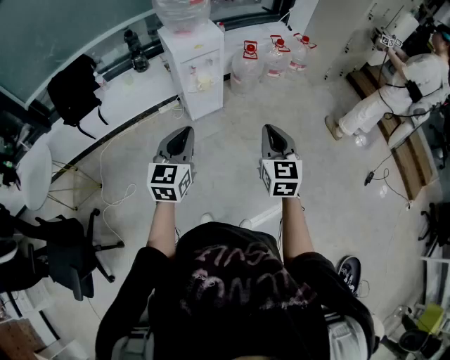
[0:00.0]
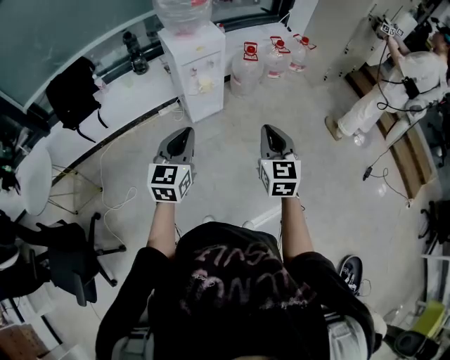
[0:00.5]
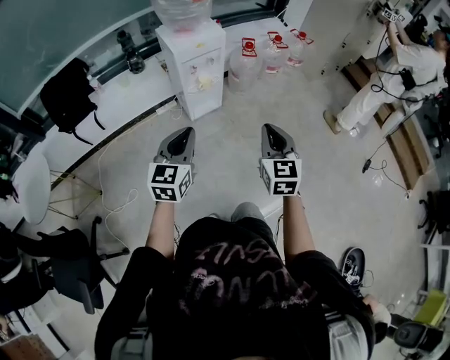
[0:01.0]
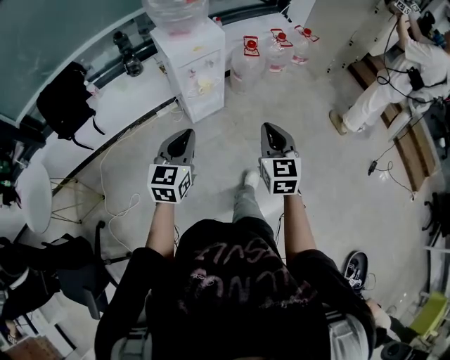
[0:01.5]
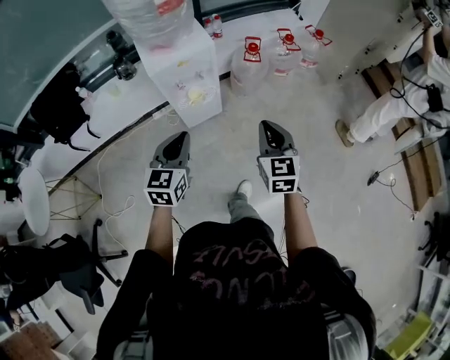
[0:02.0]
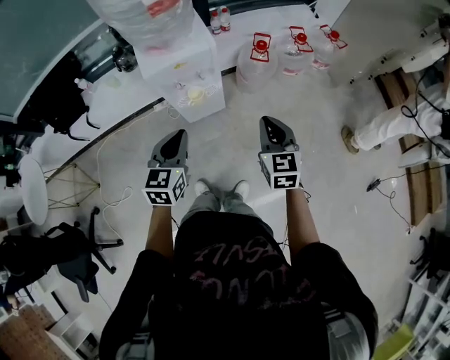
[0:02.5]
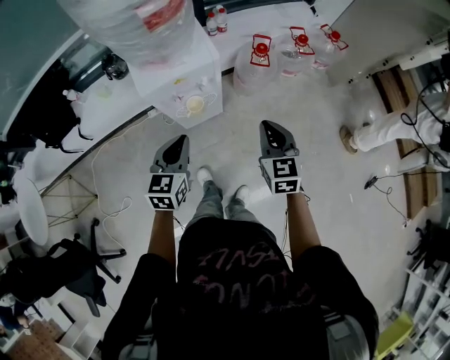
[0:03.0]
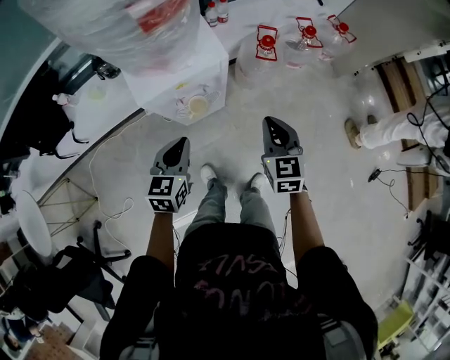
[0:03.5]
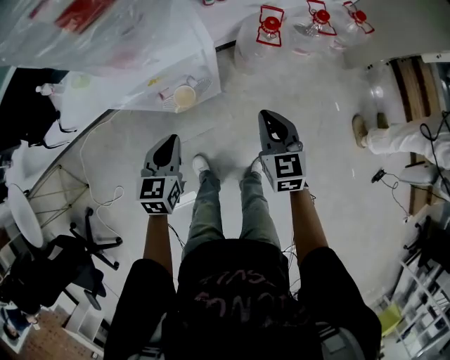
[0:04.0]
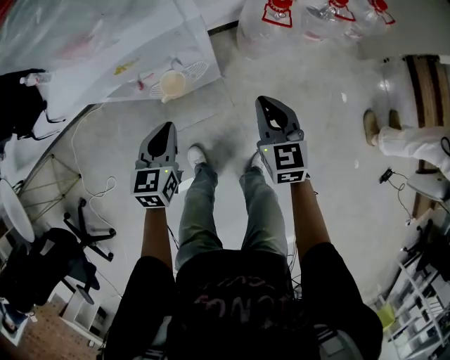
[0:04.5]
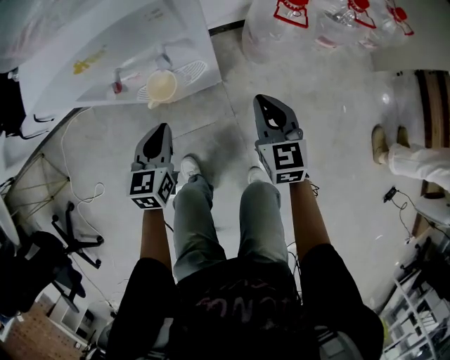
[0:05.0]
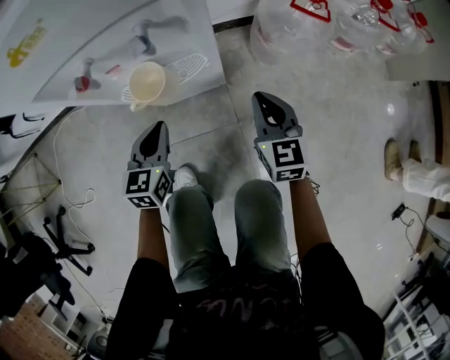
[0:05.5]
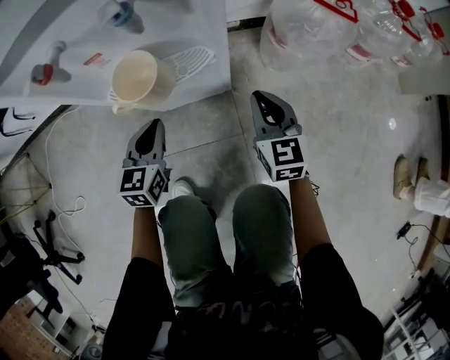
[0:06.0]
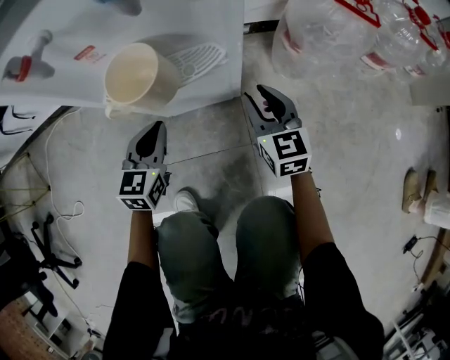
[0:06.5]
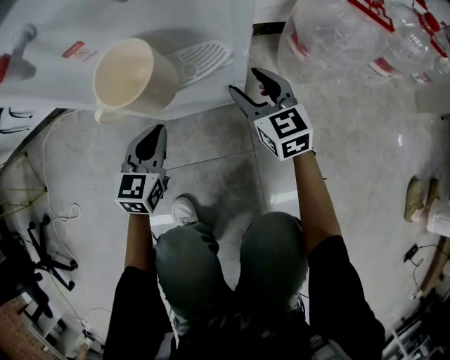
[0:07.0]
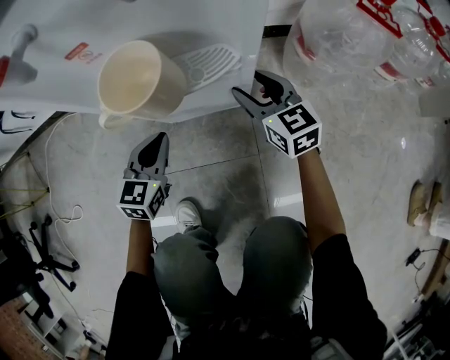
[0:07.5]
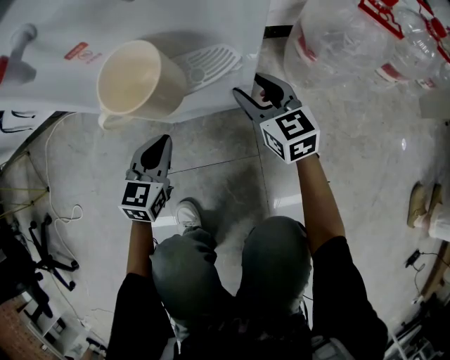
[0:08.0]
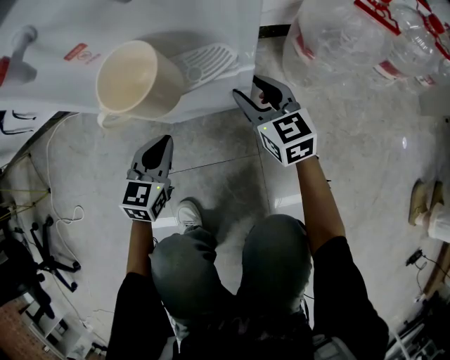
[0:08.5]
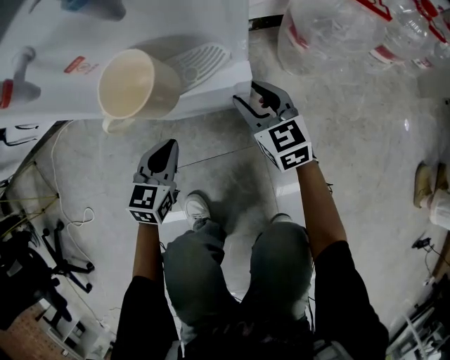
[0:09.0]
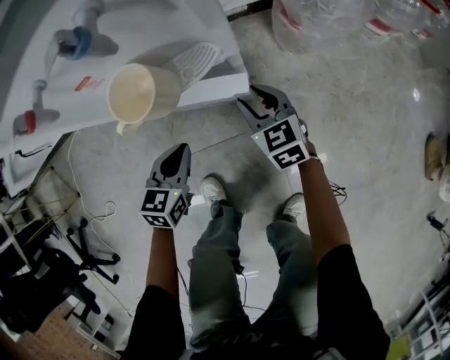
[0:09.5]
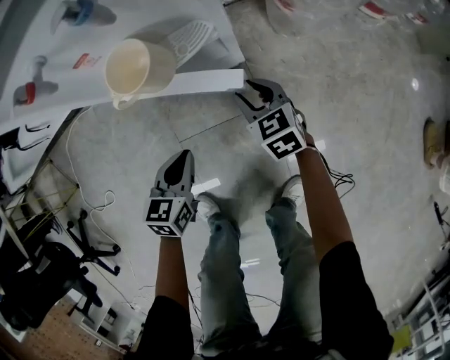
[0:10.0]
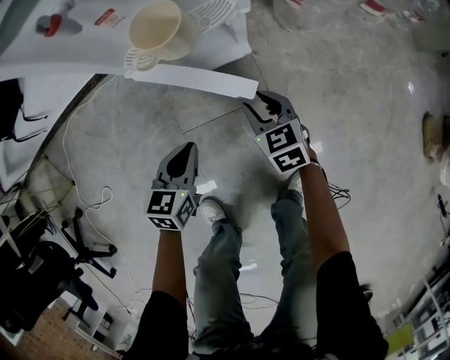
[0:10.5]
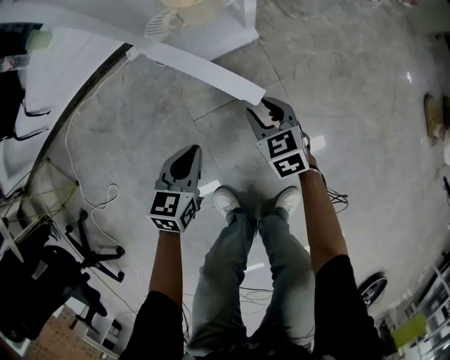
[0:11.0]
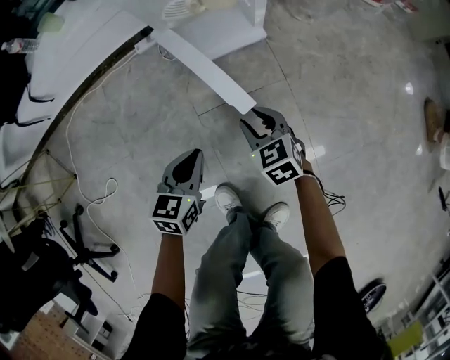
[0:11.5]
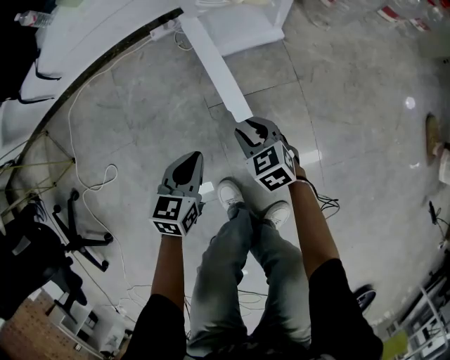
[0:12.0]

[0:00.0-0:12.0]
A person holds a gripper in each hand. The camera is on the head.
0:00.0 to 0:02.0: Both grippers travel together forward, approximately 30 cm.
0:02.0 to 0:04.0: Both grippers move forward and downward, approximately 30 cm.
0:04.0 to 0:06.0: The grippers both shift downward by roughly 40 cm.
0:06.0 to 0:08.0: The left gripper is displaced downward by some 10 cm, while the right gripper moves forward, downward and to the left, roughly 15 cm, and opens up.
0:08.0 to 0:10.0: The right gripper heads backward, covering about 10 cm. Meanwhile the left gripper heads backward and upward, covering approximately 15 cm.
0:10.0 to 0:12.0: The two grippers go about 25 cm backward and to the left.

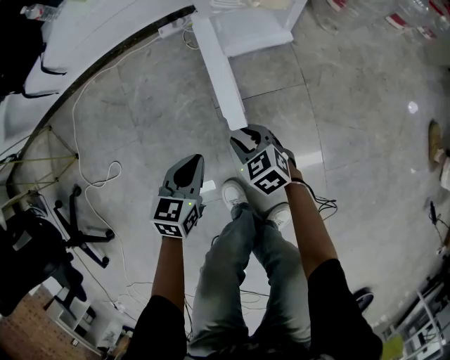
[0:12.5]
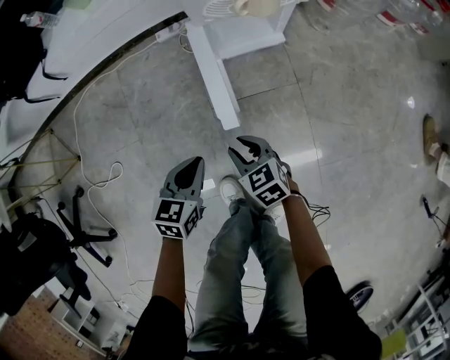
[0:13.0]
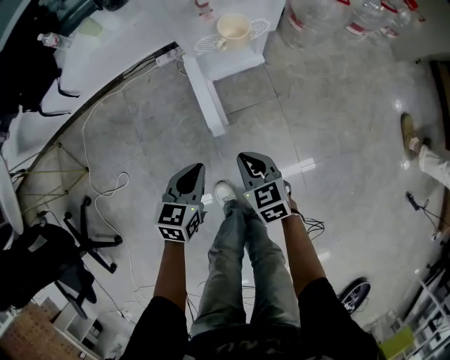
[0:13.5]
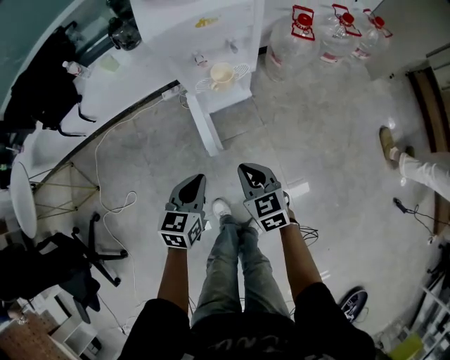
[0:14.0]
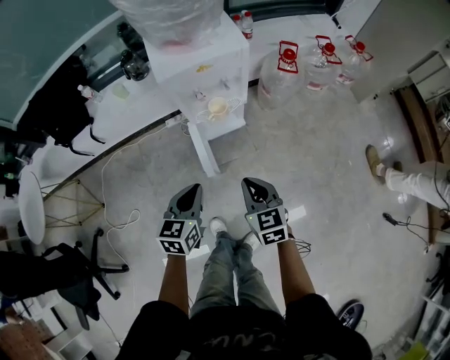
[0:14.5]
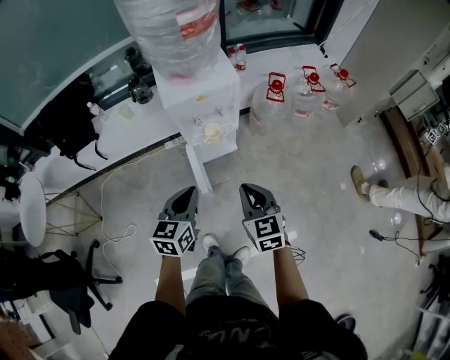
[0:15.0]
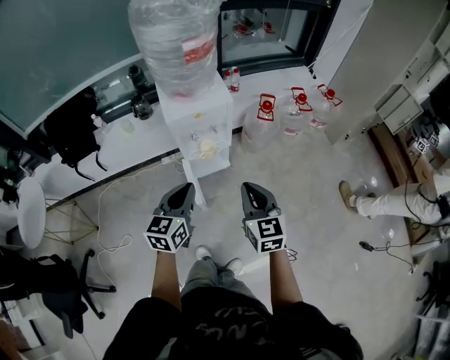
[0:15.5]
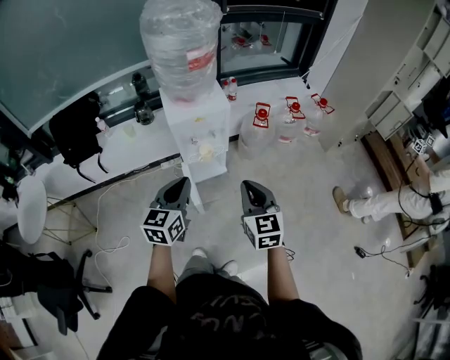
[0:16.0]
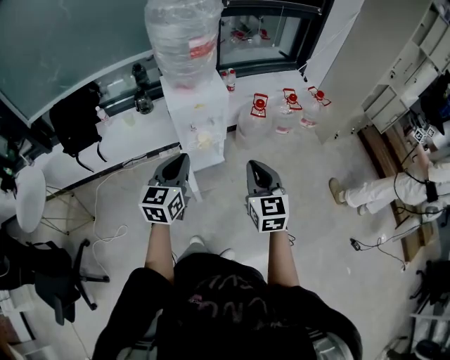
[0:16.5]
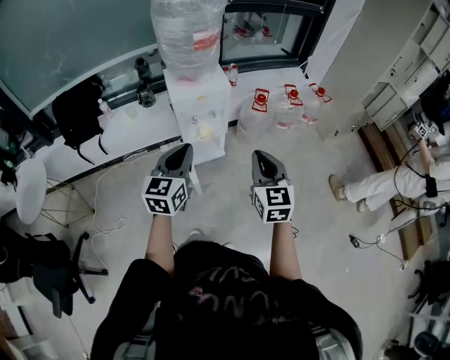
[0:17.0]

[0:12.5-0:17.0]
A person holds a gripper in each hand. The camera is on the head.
0:12.5 to 0:14.5: Both grippers move upward, roughly 50 cm. The right gripper turns by some 30 degrees, and closes.
0:14.5 to 0:17.0: Both grippers move upward, approximately 30 cm. The right gripper rotates some 30 degrees, while the left gripper rotates about 20 degrees.

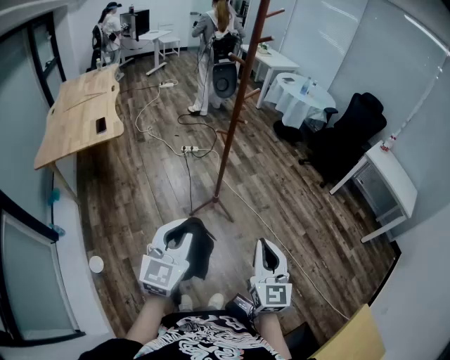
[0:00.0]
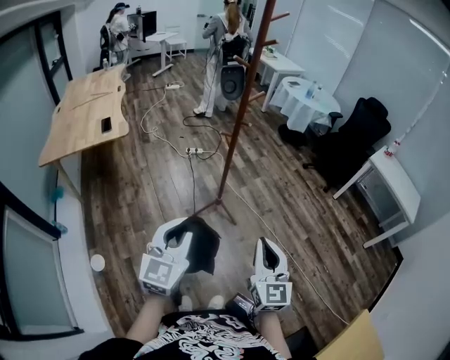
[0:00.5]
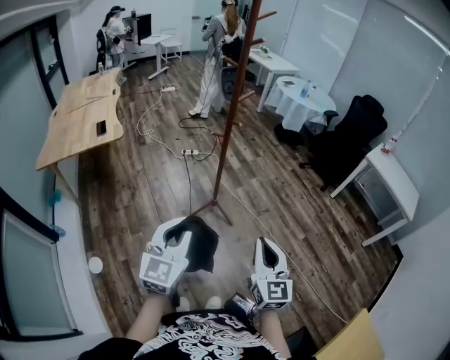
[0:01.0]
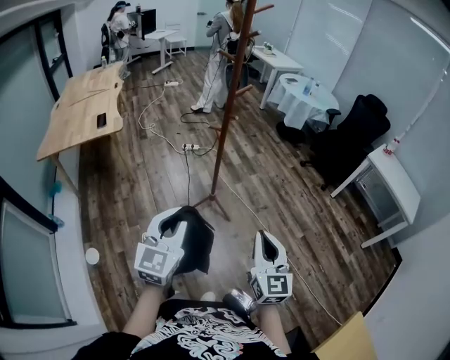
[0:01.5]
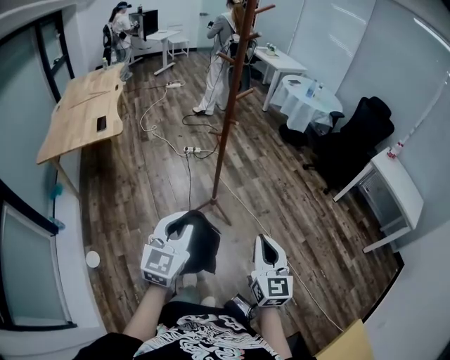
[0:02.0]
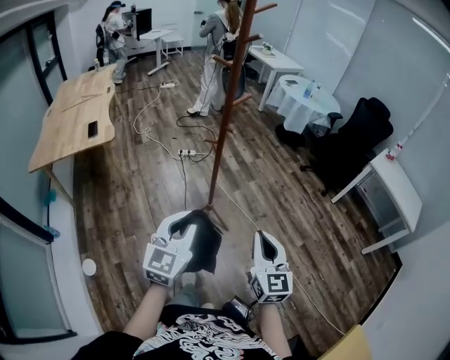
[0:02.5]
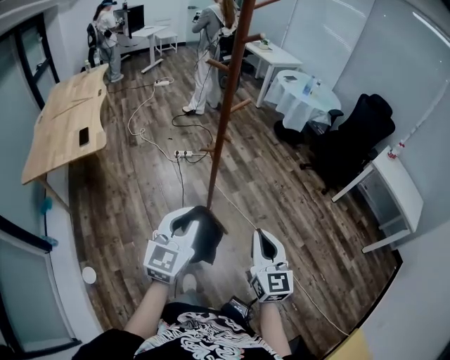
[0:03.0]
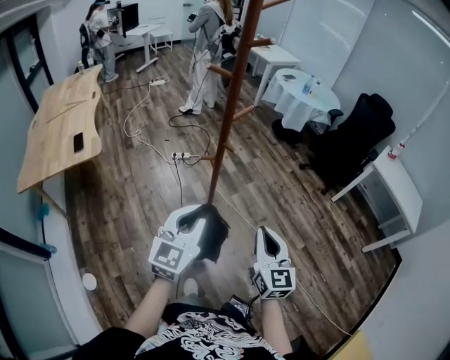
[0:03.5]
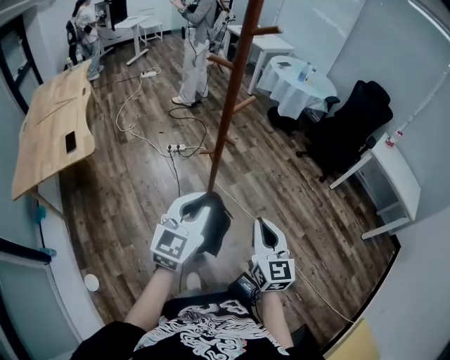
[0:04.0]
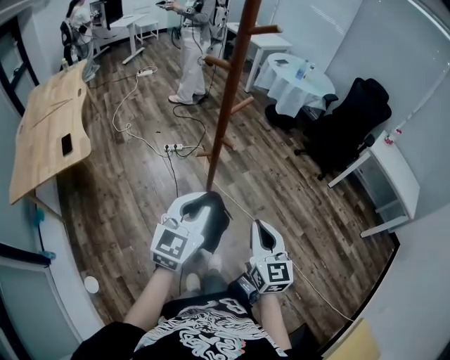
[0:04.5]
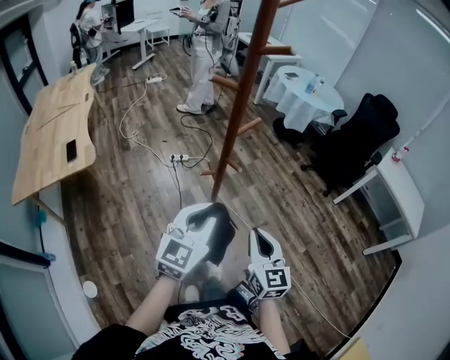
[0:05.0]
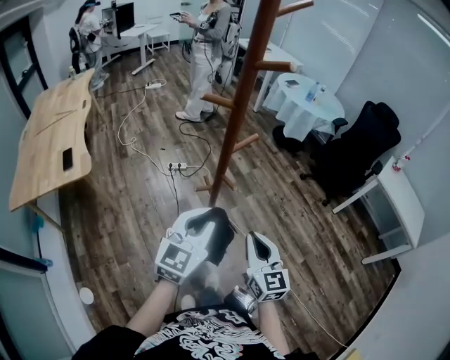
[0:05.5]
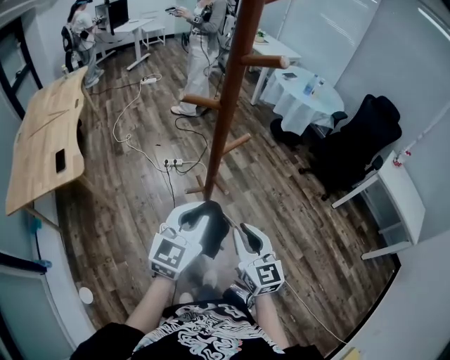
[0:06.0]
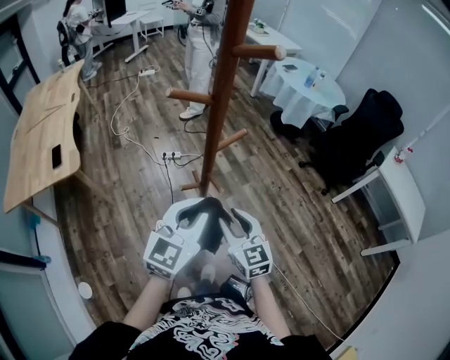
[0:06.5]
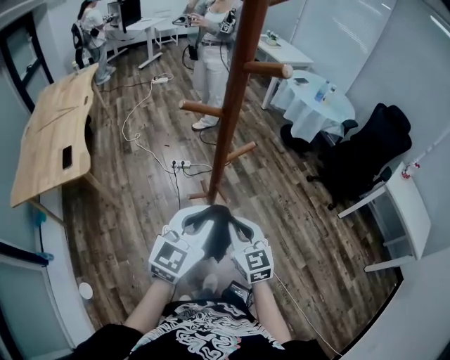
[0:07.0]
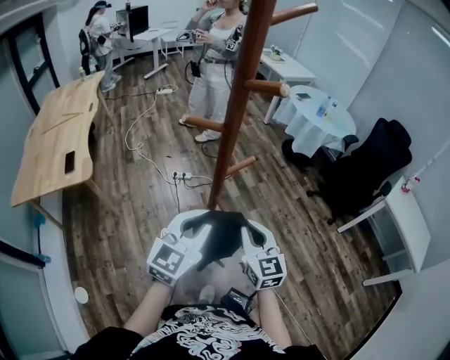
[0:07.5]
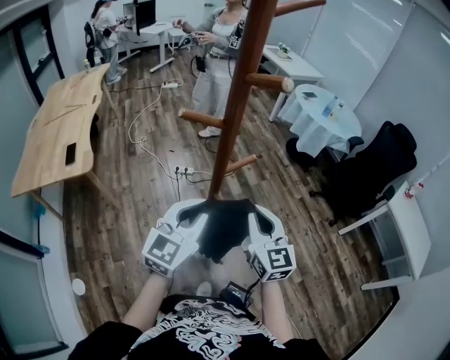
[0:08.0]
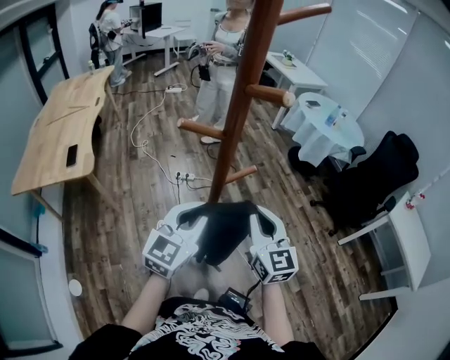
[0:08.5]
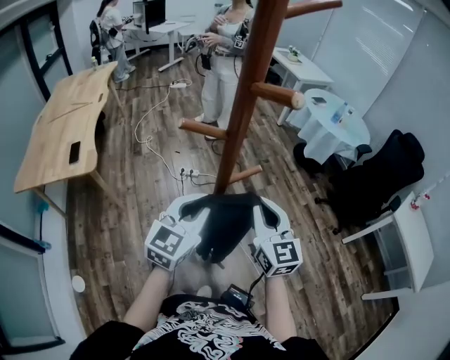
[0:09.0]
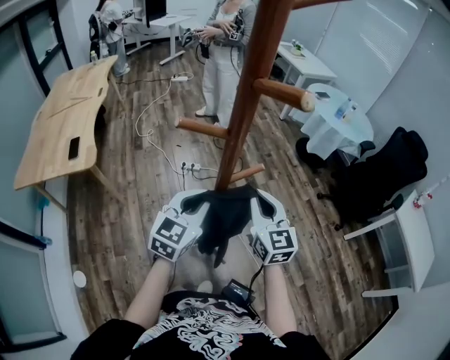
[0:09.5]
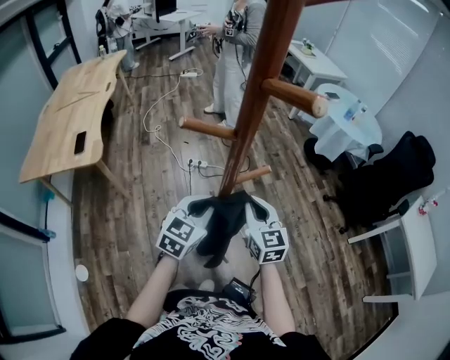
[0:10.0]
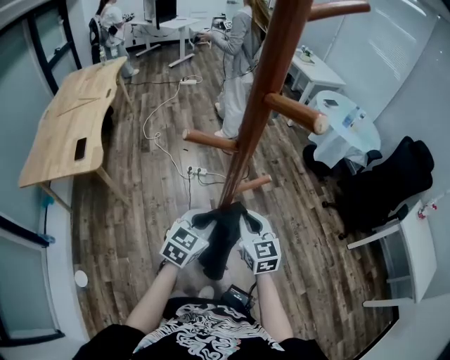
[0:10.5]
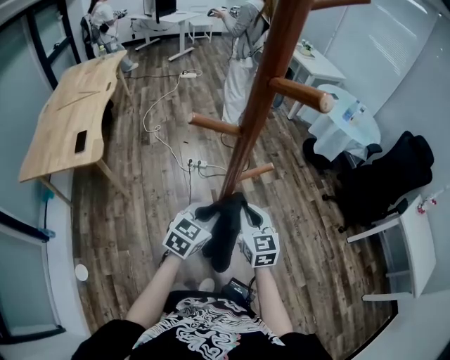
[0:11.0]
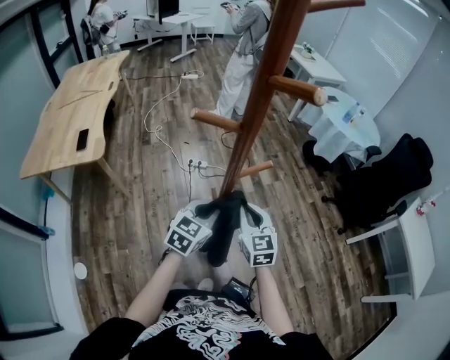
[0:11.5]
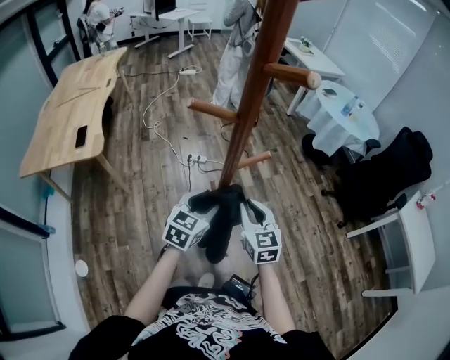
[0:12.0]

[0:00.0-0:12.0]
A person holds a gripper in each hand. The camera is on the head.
0:00.0 to 0:02.0: The right gripper shifts roughly 10 cm to the right and forward. The left gripper is displaced to the right by about 5 cm.
0:02.0 to 0:04.0: Both grippers move forward, about 25 cm.
0:04.0 to 0:06.0: The two grippers go approximately 15 cm forward.
0:06.0 to 0:08.0: The right gripper moves forward and upward, about 10 cm, and opens, then closes once more, while the left gripper changes place by some 5 cm.
0:08.0 to 0:10.0: The left gripper heads downward and forward, covering approximately 15 cm; the right gripper travels forward and downward by roughly 15 cm.
0:10.0 to 0:12.0: The left gripper opens, while the right gripper ends up about 5 cm from where it was.
